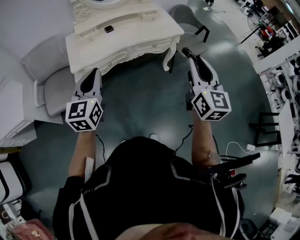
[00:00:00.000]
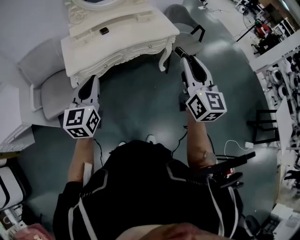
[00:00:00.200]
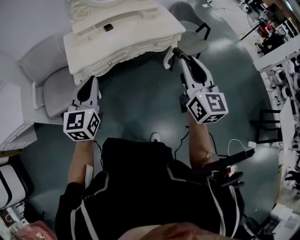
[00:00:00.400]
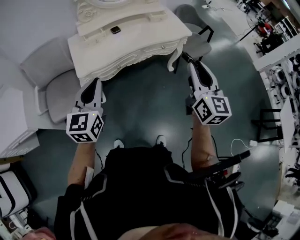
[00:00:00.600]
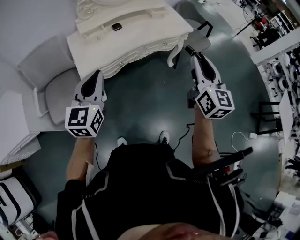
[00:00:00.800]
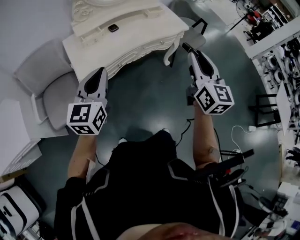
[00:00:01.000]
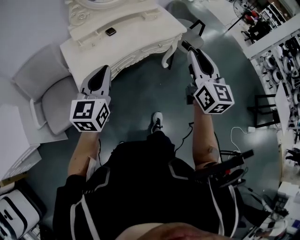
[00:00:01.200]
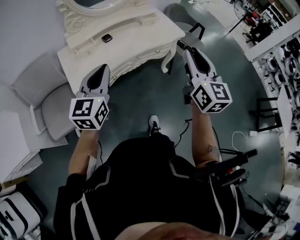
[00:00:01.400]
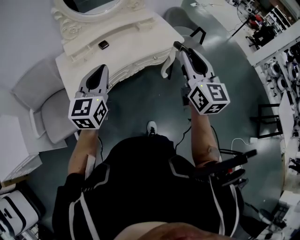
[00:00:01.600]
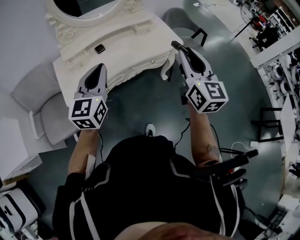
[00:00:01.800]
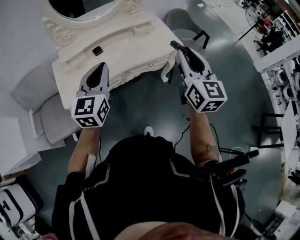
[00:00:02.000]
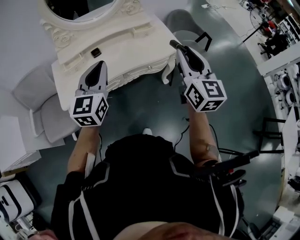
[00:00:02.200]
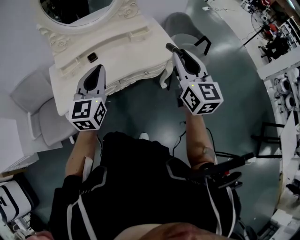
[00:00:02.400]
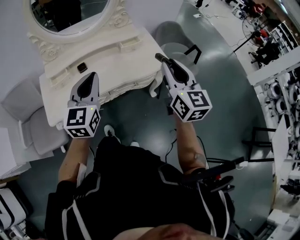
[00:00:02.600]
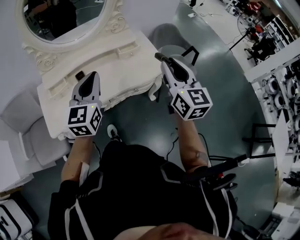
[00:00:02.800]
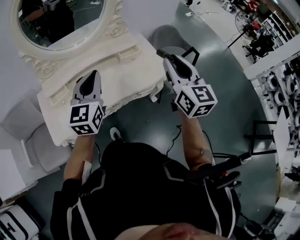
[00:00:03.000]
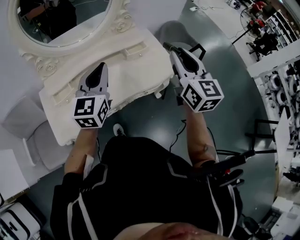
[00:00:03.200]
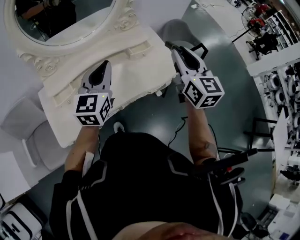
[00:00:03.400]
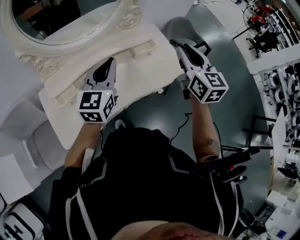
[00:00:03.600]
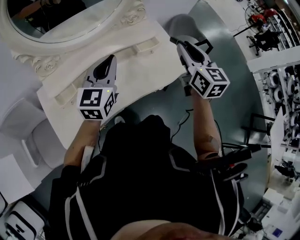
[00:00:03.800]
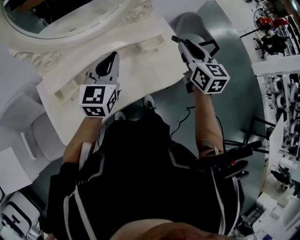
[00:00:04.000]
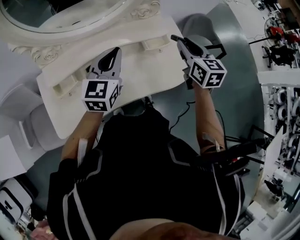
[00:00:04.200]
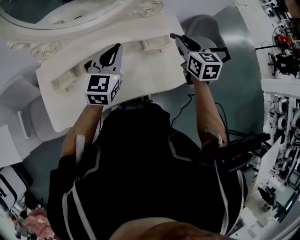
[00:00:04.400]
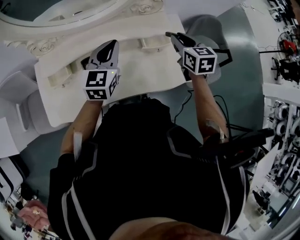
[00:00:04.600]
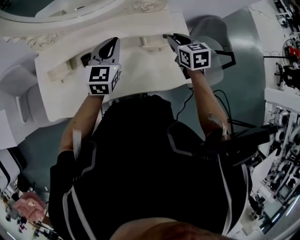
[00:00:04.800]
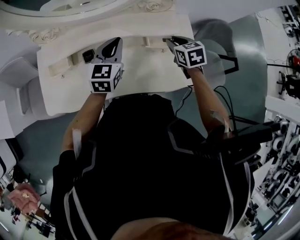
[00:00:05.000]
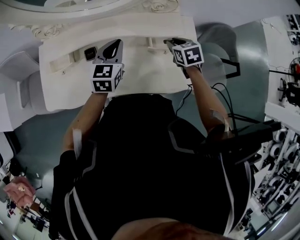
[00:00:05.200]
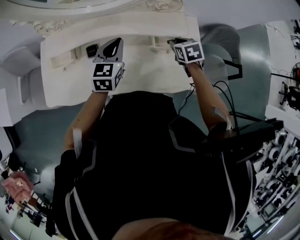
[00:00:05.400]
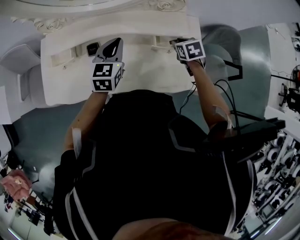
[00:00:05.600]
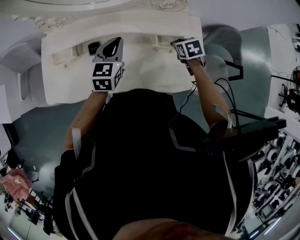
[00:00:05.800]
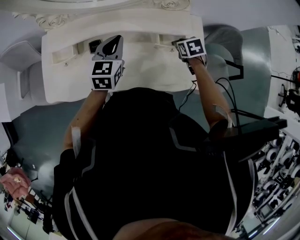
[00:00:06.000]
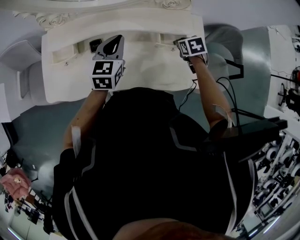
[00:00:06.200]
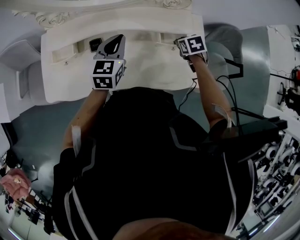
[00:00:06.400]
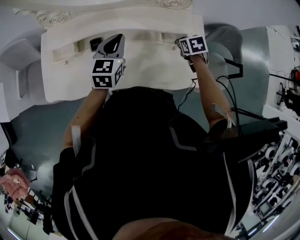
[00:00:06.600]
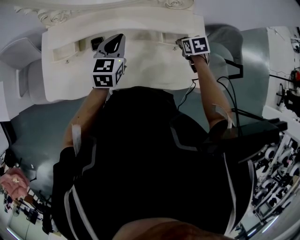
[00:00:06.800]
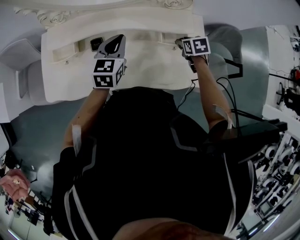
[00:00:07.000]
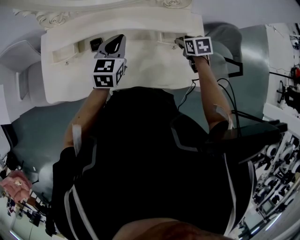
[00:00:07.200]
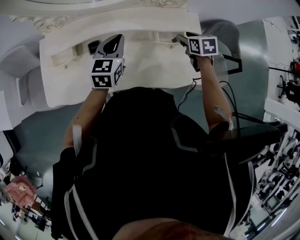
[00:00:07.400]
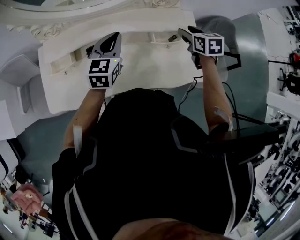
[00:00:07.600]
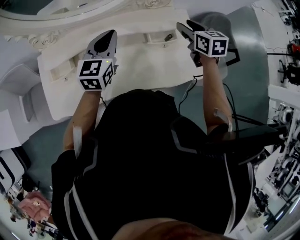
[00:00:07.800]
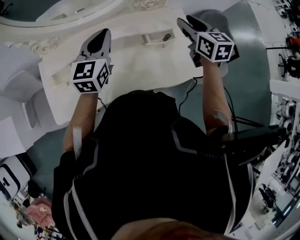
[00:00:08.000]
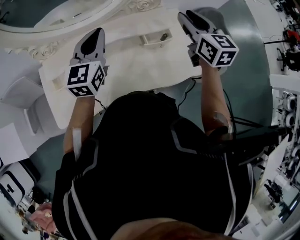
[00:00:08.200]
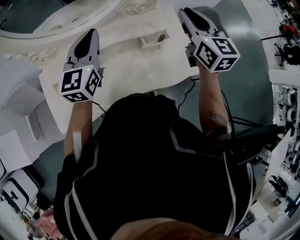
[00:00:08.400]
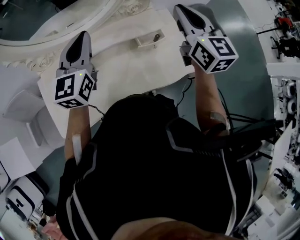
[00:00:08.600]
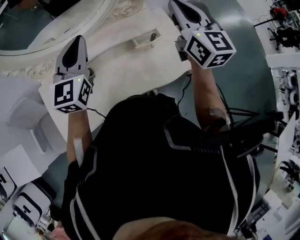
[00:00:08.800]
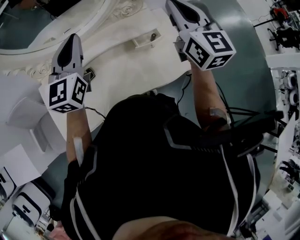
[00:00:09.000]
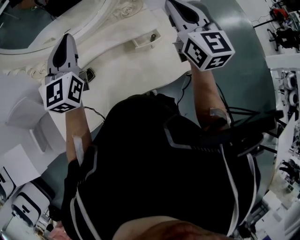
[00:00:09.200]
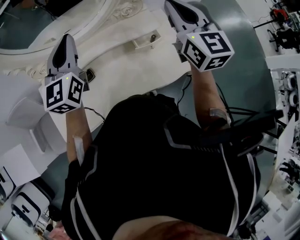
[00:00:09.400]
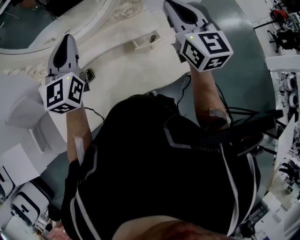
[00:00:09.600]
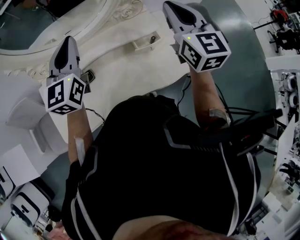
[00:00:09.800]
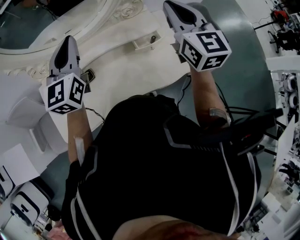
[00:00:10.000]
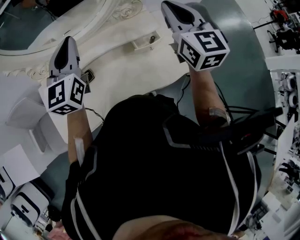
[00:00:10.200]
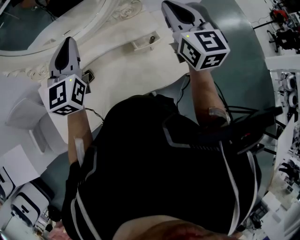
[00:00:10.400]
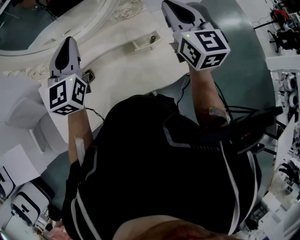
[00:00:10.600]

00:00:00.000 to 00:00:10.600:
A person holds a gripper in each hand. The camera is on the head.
00:00:00.000 to 00:00:01.600: The left gripper travels forward by some 15 cm, while the right gripper goes some 15 cm forward and to the left.
00:00:01.600 to 00:00:03.000: The right gripper is displaced forward by some 25 cm. The left gripper goes roughly 30 cm forward and to the right.
00:00:03.000 to 00:00:04.600: Both grippers travel together forward and downward, about 30 cm. The right gripper tilts its fingers roughly 30 degrees downward.
00:00:04.600 to 00:00:06.000: The right gripper goes some 20 cm downward, and tilts its fingers approximately 30 degrees downward, while the left gripper travels downward by some 5 cm.
00:00:06.000 to 00:00:07.600: The right gripper goes some 10 cm upward, turns by some 20 degrees, and opens its fingers.
00:00:07.600 to 00:00:09.000: The right gripper shifts approximately 25 cm upward, tilts its fingers roughly 40 degrees upward, and closes, while the left gripper shifts some 20 cm upward, and swivels approximately 20 degrees.
00:00:09.000 to 00:00:10.600: There are only small adjustments of the grippers.

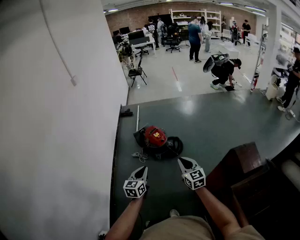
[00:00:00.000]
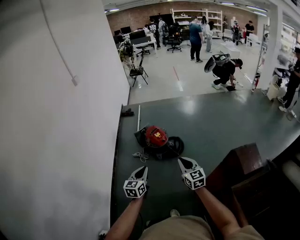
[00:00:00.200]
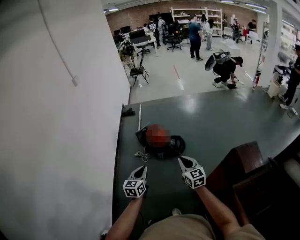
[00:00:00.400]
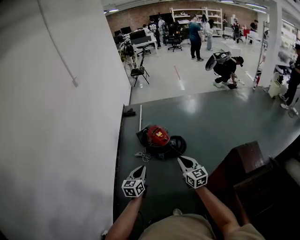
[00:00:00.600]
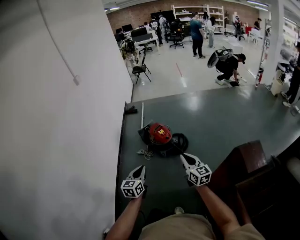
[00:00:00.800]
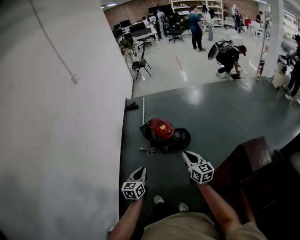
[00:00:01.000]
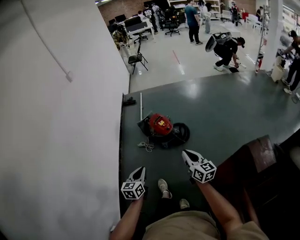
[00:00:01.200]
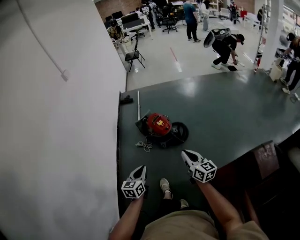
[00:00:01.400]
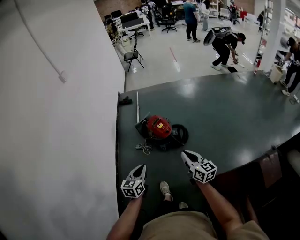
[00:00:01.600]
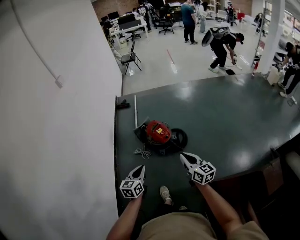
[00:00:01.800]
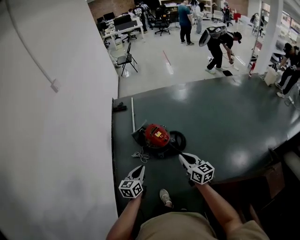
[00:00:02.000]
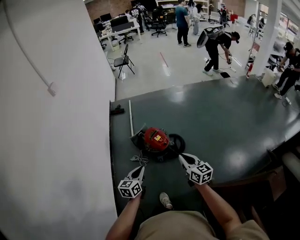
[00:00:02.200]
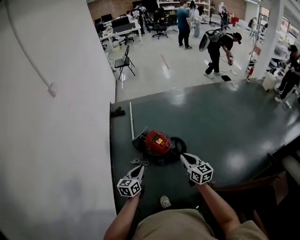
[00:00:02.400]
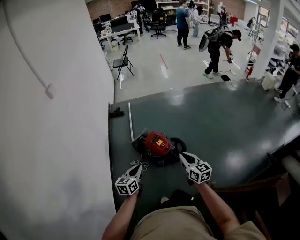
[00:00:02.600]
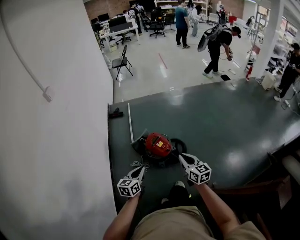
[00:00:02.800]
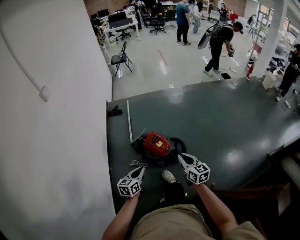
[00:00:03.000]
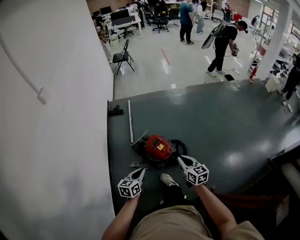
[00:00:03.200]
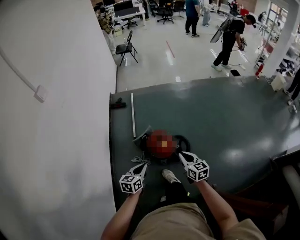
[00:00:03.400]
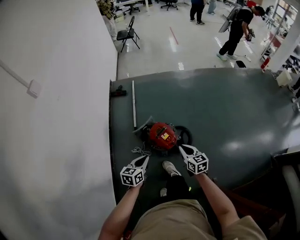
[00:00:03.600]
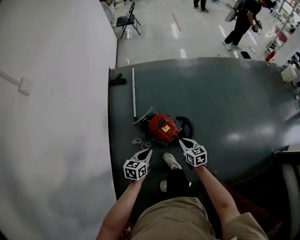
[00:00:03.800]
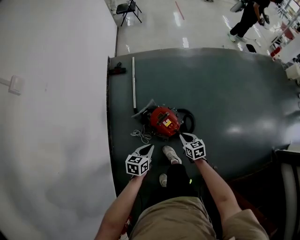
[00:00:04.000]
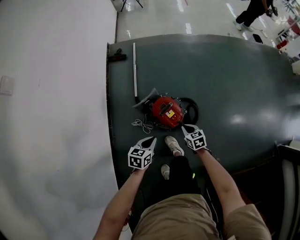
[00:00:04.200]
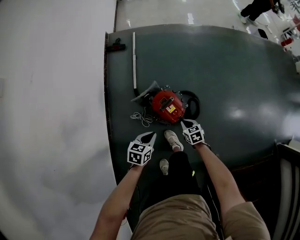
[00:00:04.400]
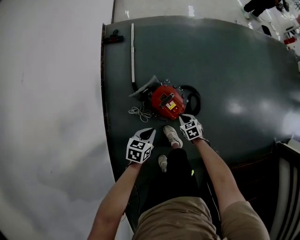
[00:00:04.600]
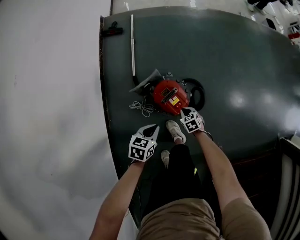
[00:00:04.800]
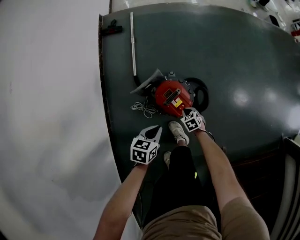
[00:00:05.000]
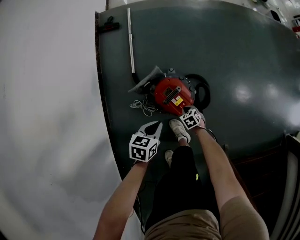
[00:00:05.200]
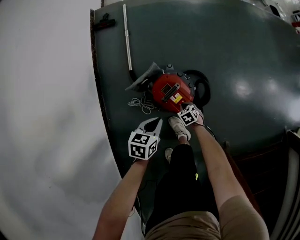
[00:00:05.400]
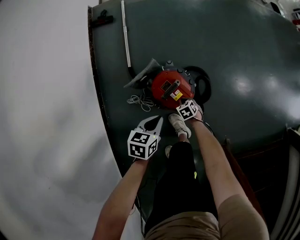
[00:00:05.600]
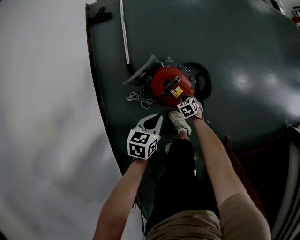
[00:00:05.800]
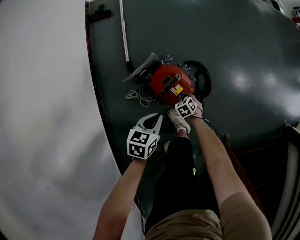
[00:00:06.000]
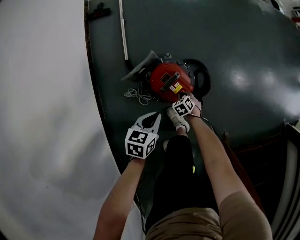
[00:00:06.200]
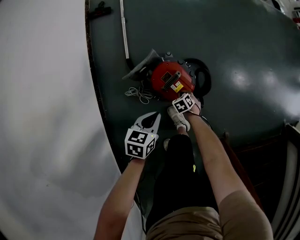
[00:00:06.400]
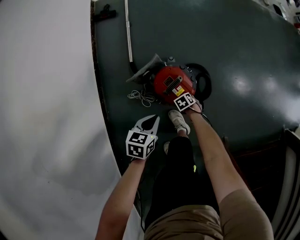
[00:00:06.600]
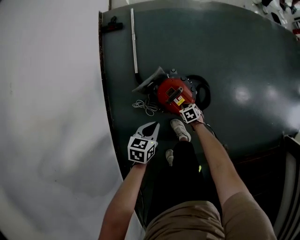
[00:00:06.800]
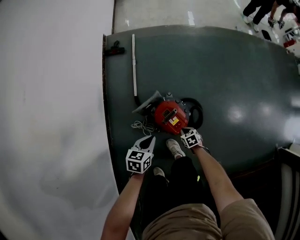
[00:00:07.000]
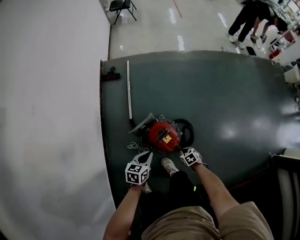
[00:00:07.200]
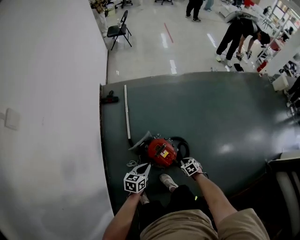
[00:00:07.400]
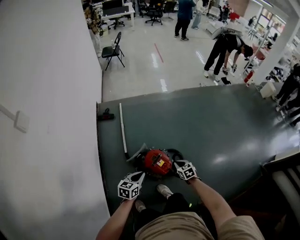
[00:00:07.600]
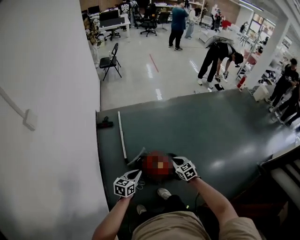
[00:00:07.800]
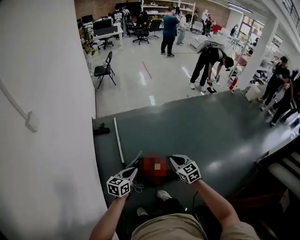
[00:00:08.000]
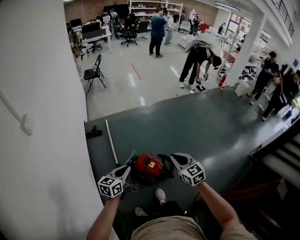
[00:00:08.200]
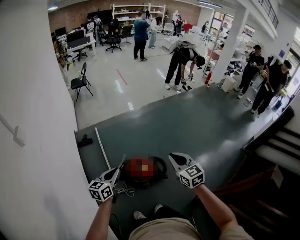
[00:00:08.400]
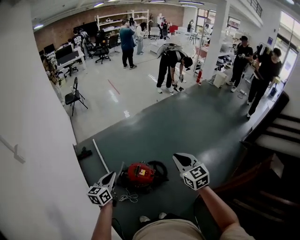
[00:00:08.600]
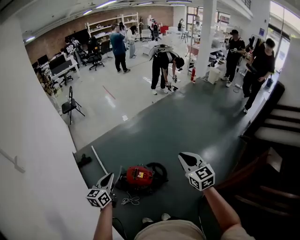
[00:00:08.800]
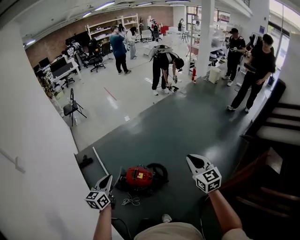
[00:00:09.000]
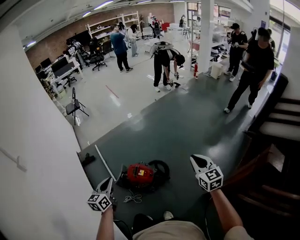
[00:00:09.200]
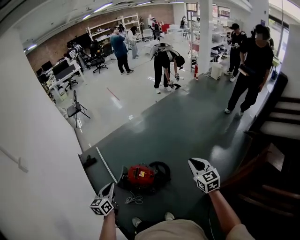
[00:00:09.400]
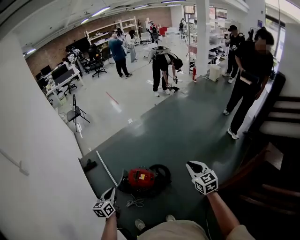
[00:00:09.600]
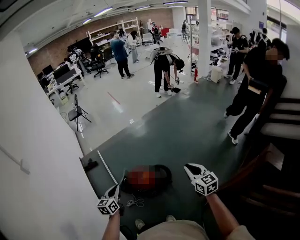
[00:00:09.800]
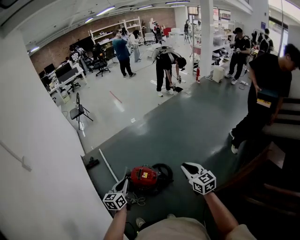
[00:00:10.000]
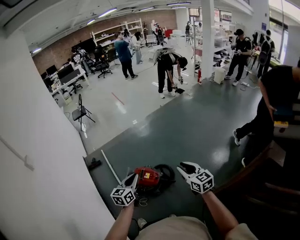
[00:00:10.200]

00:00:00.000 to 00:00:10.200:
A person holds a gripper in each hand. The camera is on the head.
00:00:00.000 to 00:00:01.400: The left gripper changes place by approximately 10 cm. Meanwhile the right gripper shifts approximately 5 cm forward, and changes its angle by approximately 20 degrees.
00:00:01.400 to 00:00:03.000: The two grippers go approximately 30 cm forward.
00:00:03.000 to 00:00:04.400: The left gripper travels forward and downward by about 30 cm, and swivels approximately 20 degrees. The right gripper is displaced downward and forward by approximately 50 cm, and tips its fingers downward by some 40 degrees.
00:00:04.400 to 00:00:05.800: The right gripper goes approximately 25 cm downward. Meanwhile the left gripper travels downward and forward by approximately 15 cm.
00:00:05.800 to 00:00:07.200: Both grippers travel together upward, approximately 20 cm.
00:00:07.200 to 00:00:08.800: The left gripper goes roughly 35 cm upward, and changes its angle by approximately 40 degrees. The right gripper goes roughly 70 cm upward, and angles its fingers upward, by approximately 60 degrees.
00:00:08.800 to 00:00:10.200: The right gripper shifts about 10 cm downward and backward, and reaches about 10 cm to the right, then returns; the left gripper goes roughly 15 cm to the right.

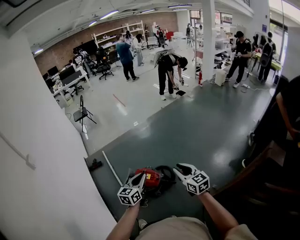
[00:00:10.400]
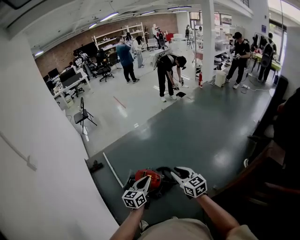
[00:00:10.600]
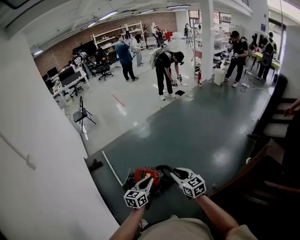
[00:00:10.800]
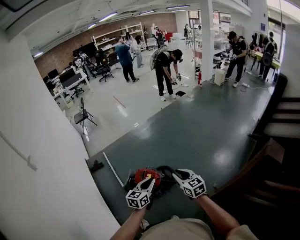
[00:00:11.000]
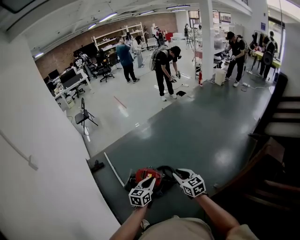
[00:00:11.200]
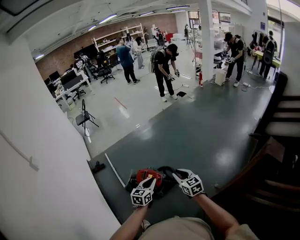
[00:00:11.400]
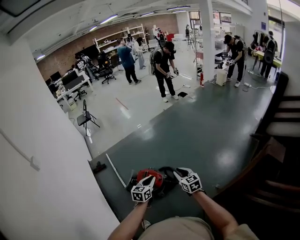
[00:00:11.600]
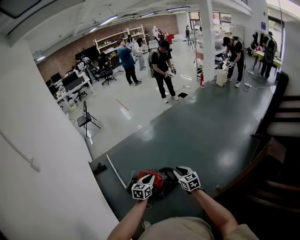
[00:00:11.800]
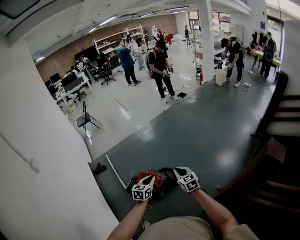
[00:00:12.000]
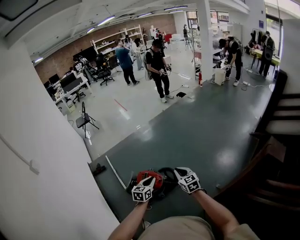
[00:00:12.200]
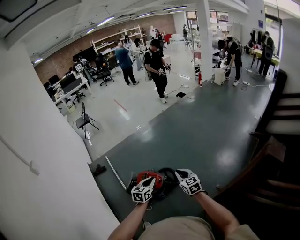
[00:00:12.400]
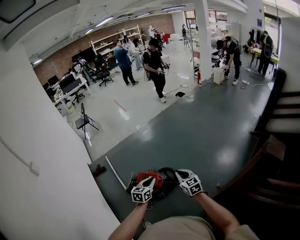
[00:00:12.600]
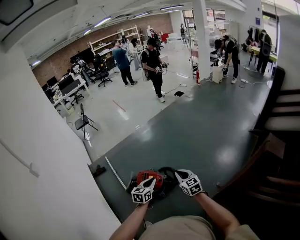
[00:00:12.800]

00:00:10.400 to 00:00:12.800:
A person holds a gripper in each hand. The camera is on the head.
00:00:10.400 to 00:00:11.600: The grippers both shift downward by roughly 10 cm.
00:00:11.600 to 00:00:12.800: There are only small adjustments of the grippers.
